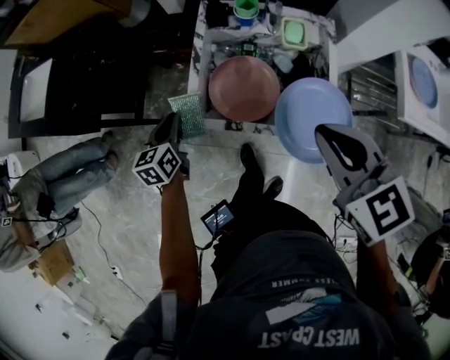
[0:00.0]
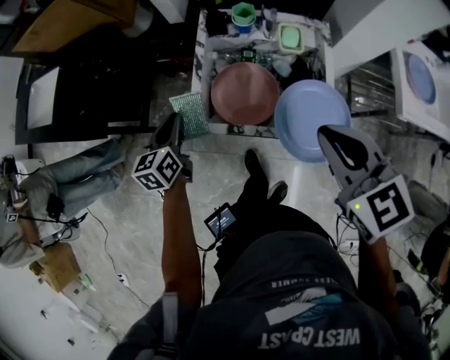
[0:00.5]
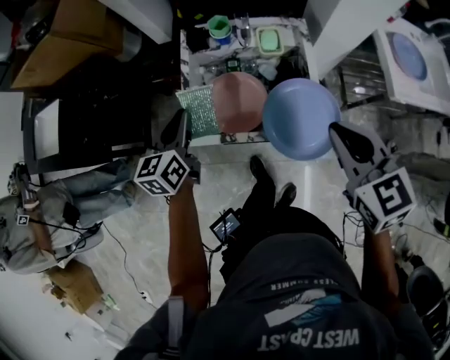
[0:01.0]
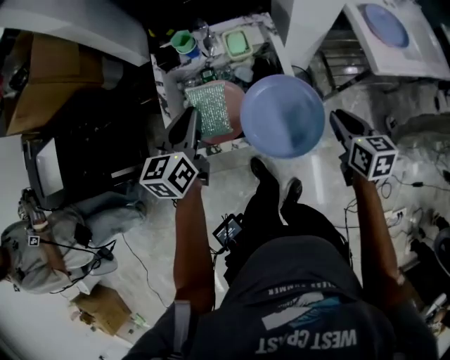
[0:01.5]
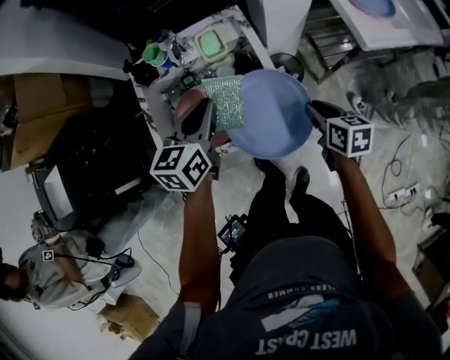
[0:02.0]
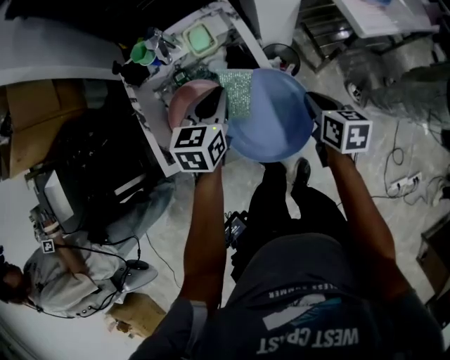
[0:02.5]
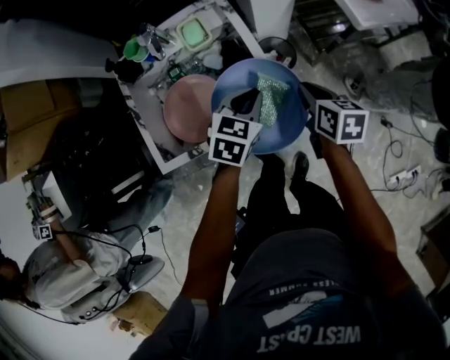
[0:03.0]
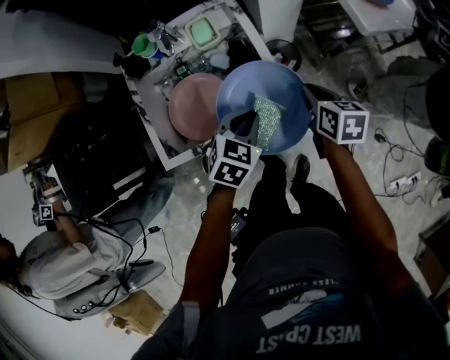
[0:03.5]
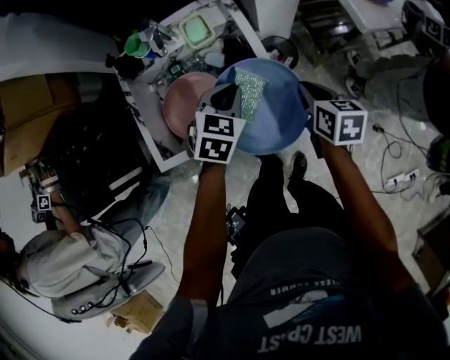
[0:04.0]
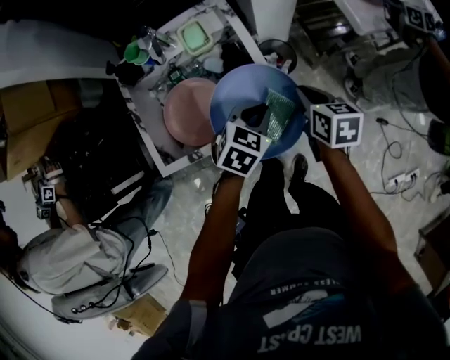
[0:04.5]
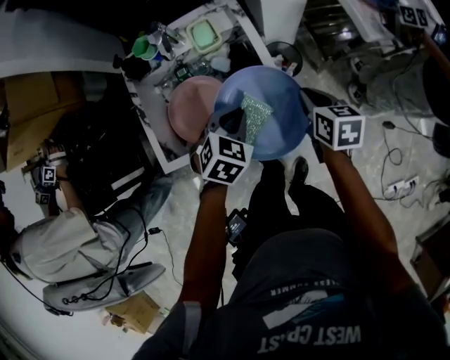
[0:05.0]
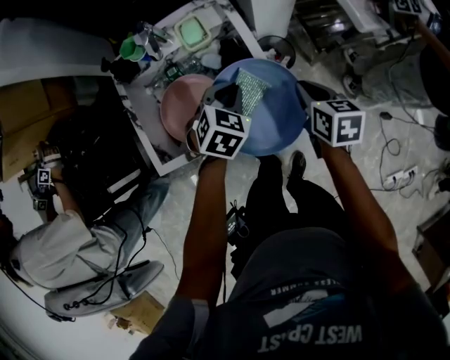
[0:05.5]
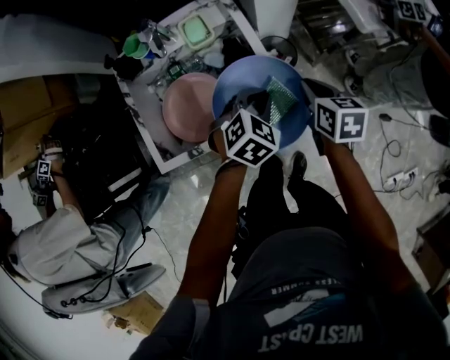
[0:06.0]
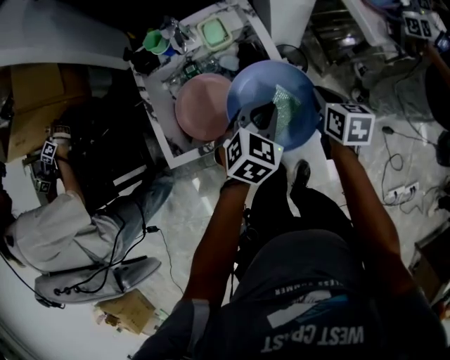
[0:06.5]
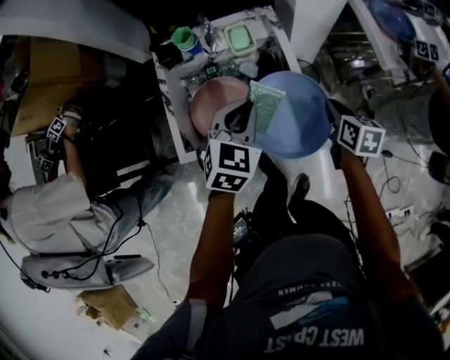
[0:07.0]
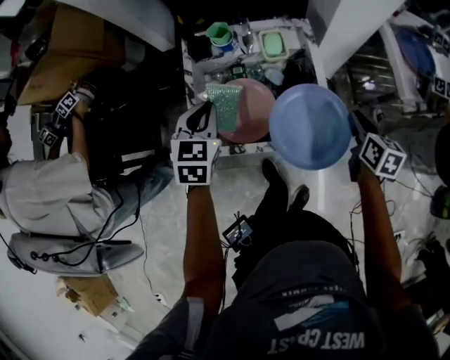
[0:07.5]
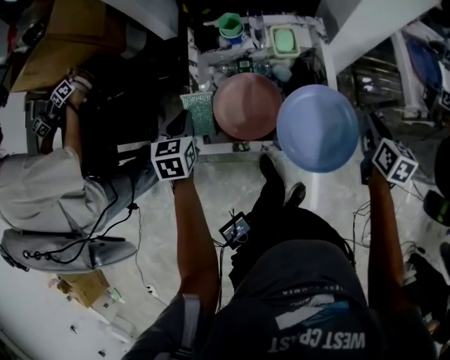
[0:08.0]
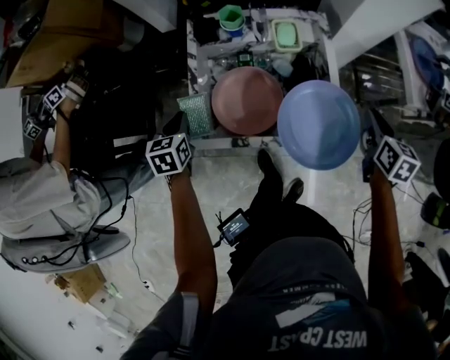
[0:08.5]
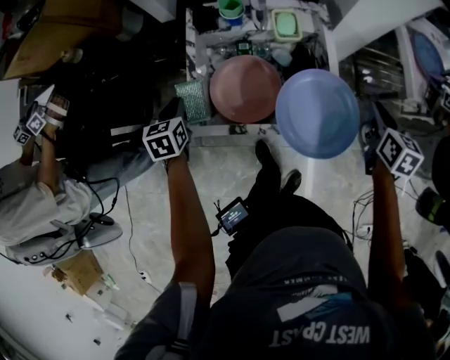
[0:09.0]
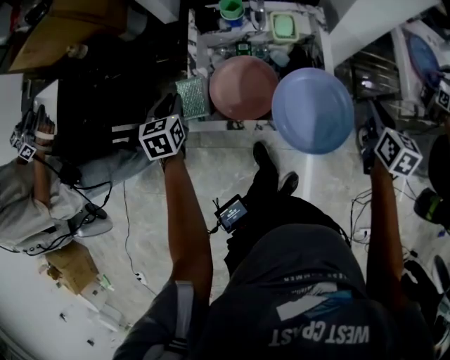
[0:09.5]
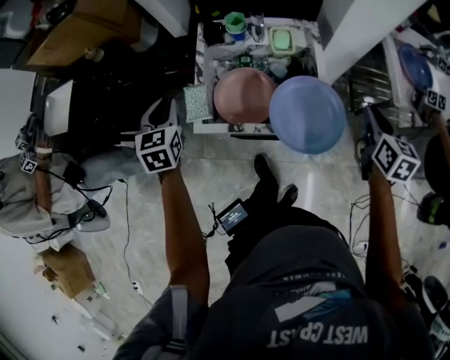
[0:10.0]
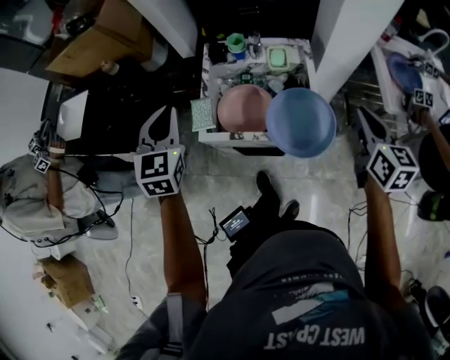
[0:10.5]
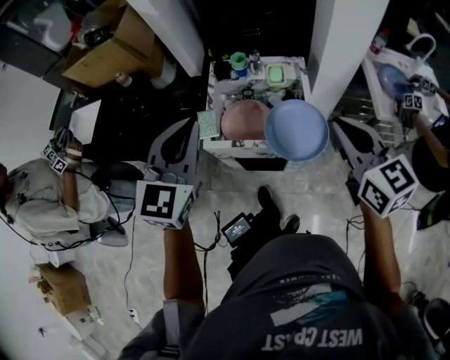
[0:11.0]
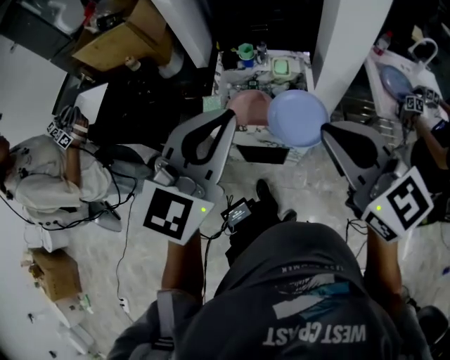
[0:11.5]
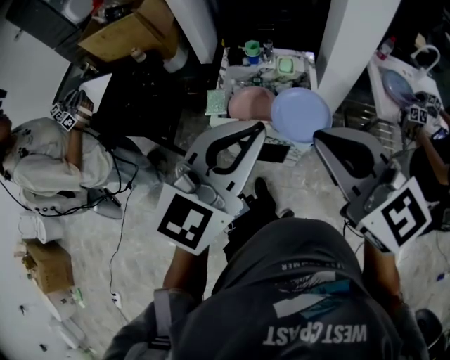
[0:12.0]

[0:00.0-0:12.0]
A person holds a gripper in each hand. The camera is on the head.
0.0 to 2.0 s: The right gripper moves downward, roughly 25 cm, and rolls clockwise, seen from behind, by approximately 50 degrees, while the left gripper changes place by about 30 cm, and swivels about 40 degrees.
2.0 to 4.0 s: The left gripper is displaced downward and to the right by approximately 10 cm, and rotates about 30 degrees.
4.0 to 6.0 s: The left gripper swings left and right, approximately 10 cm each way, with 2 reversals.
6.0 to 8.0 s: The right gripper changes place by some 5 cm. The left gripper goes about 40 cm to the left, and changes its angle by approximately 60 degrees.
8.0 to 10.0 s: Both grippers move upward, approximately 10 cm.
10.0 to 12.0 s: The right gripper goes roughly 40 cm upward, to the left and backward, and rotates about 60 degrees; the left gripper goes some 50 cm backward, upward and to the right, and turns by roughly 50 degrees.

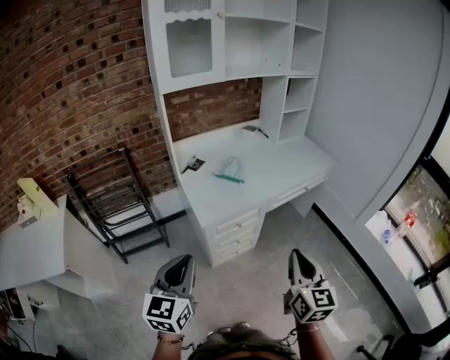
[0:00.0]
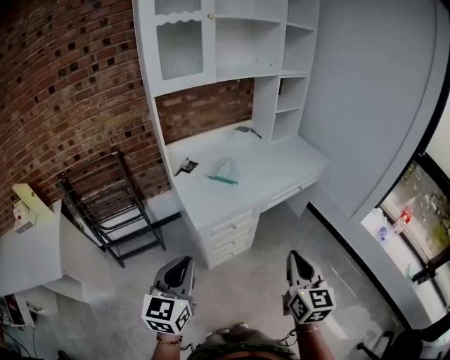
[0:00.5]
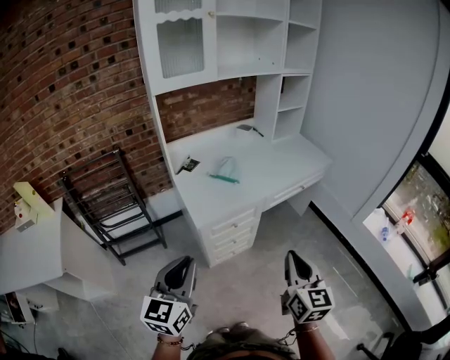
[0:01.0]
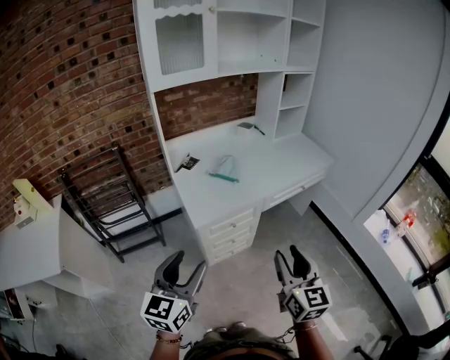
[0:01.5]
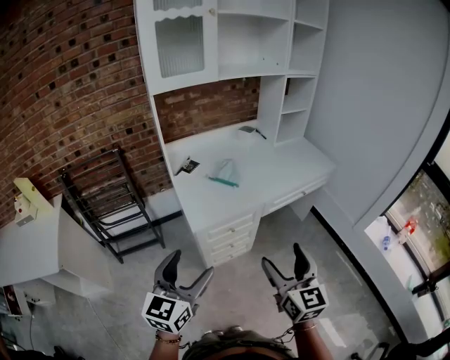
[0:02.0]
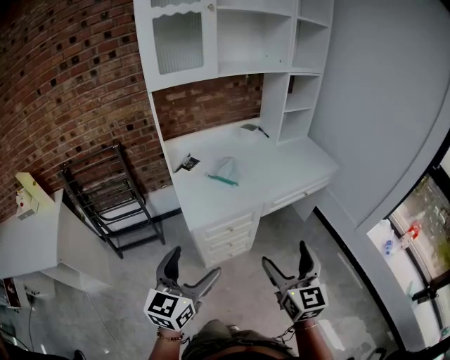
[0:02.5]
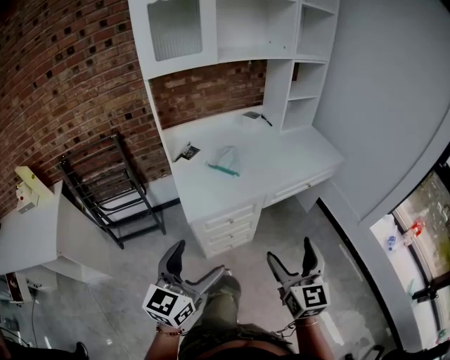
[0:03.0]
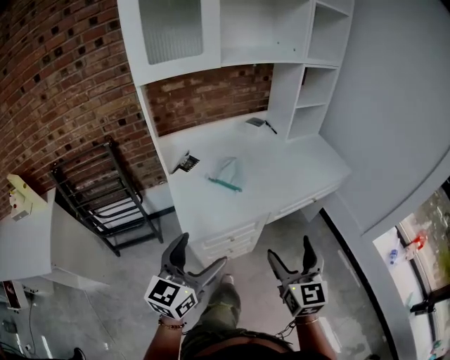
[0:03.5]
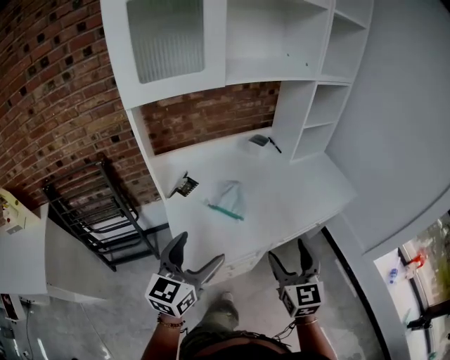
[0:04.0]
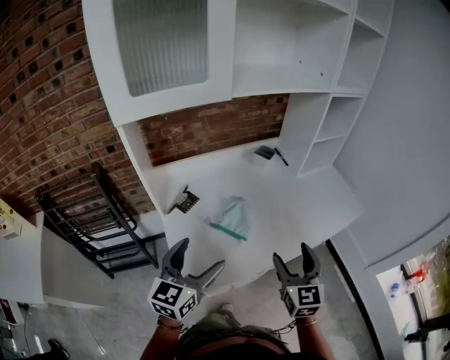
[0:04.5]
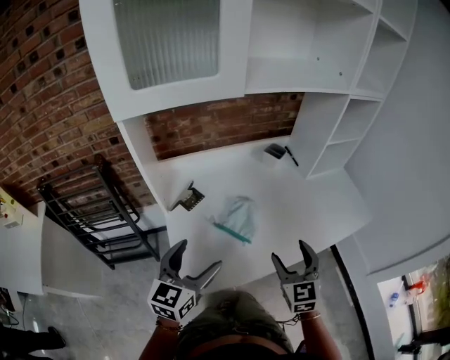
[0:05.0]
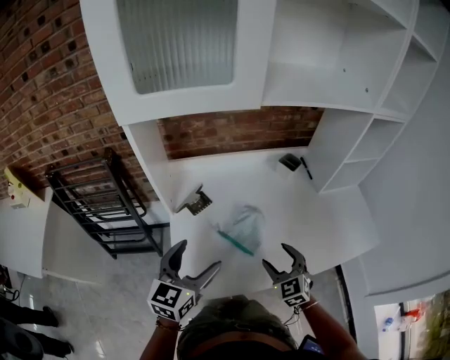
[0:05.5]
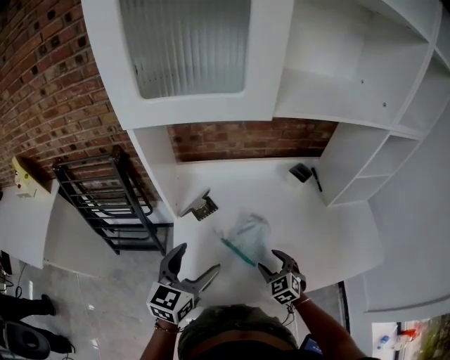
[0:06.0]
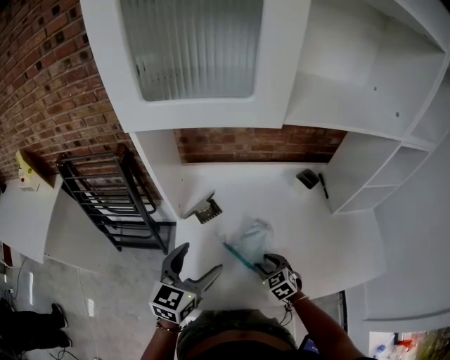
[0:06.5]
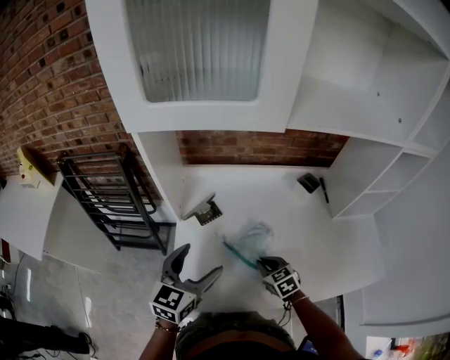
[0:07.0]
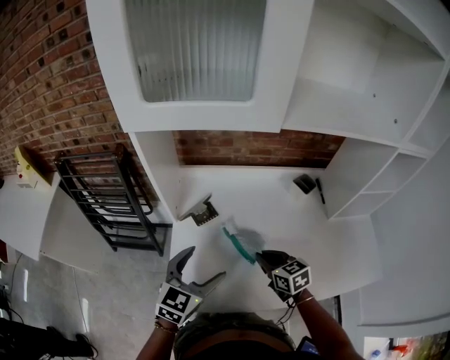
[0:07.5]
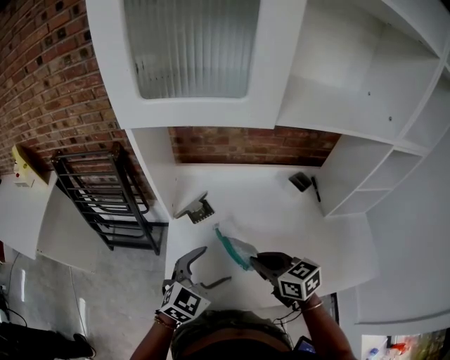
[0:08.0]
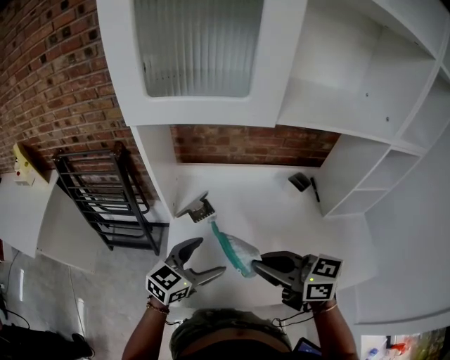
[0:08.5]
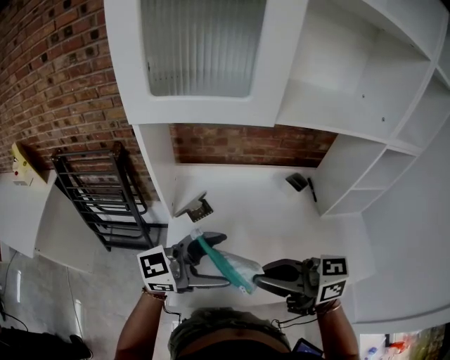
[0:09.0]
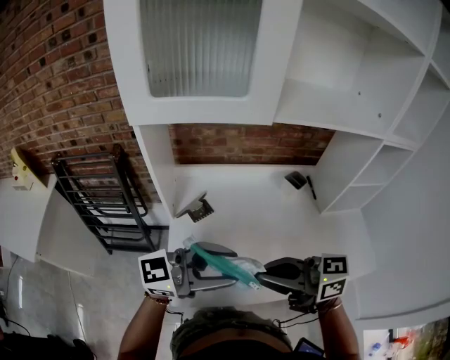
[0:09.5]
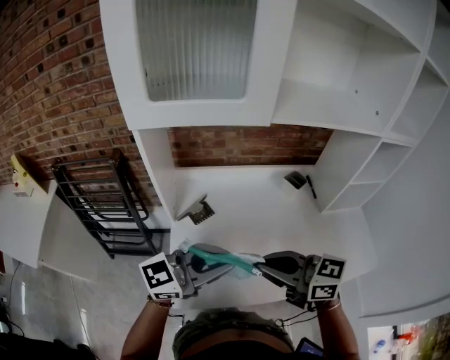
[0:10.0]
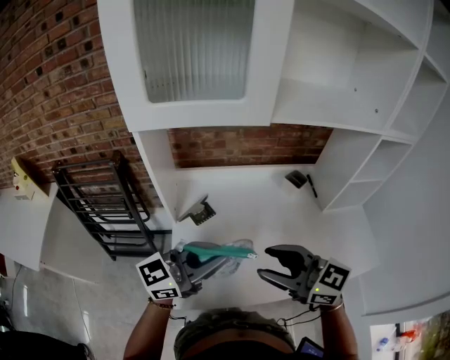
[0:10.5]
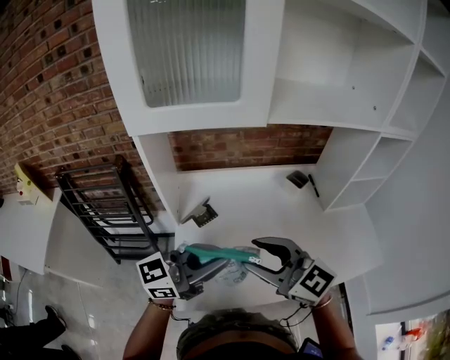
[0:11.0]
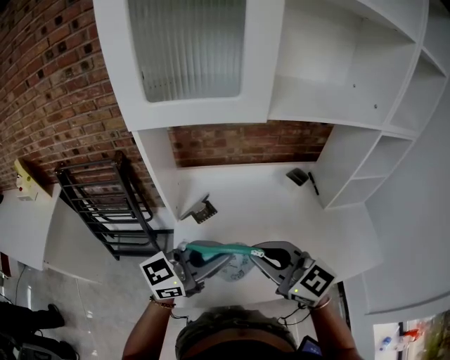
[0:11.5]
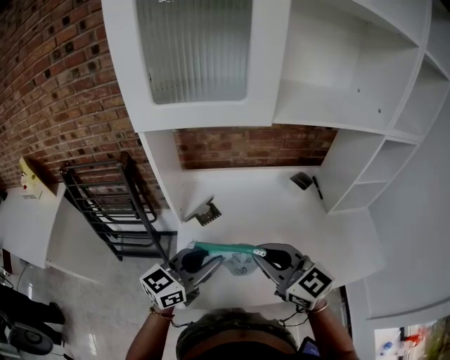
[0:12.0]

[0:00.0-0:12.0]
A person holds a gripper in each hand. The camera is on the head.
0.0 to 2.0 s: The right gripper opens up, while the left gripper heads to the right, covering some 5 cm, and opens its fingers.
2.0 to 4.0 s: The two grippers go some 30 cm forward.
4.0 to 6.0 s: The left gripper is displaced forward by some 15 cm. Meanwhile the right gripper travels forward and downward by roughly 35 cm, and changes its angle by roughly 50 degrees.
6.0 to 8.0 s: The left gripper travels to the right by about 5 cm, and rotates about 20 degrees, while the right gripper shifts about 15 cm upward, swivels approximately 40 degrees, and closes up.
8.0 to 10.0 s: Both grippers move upward, about 15 cm. The right gripper rotates some 20 degrees. Meanwhile the left gripper tips its fingers upward by about 30 degrees, and closes.
10.0 to 12.0 s: The left gripper moves downward, roughly 5 cm, and swivels about 30 degrees, while the right gripper swivels approximately 30 degrees, and opens, then closes again.

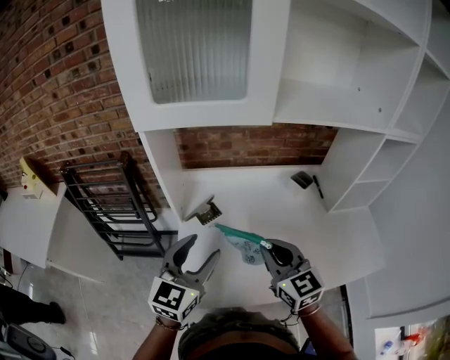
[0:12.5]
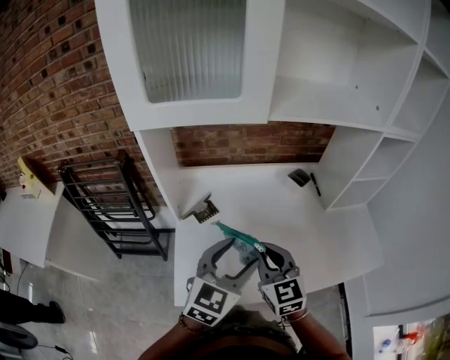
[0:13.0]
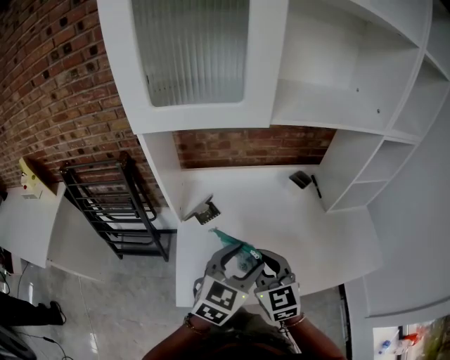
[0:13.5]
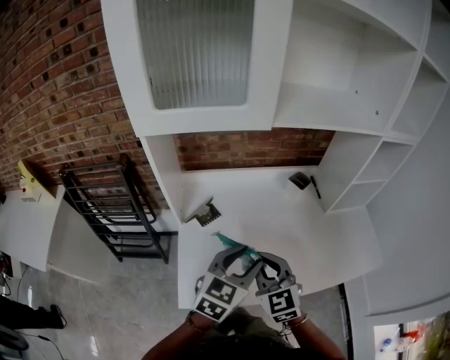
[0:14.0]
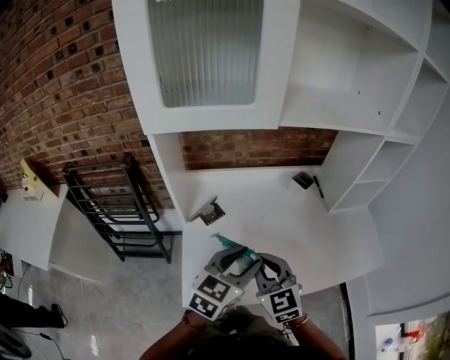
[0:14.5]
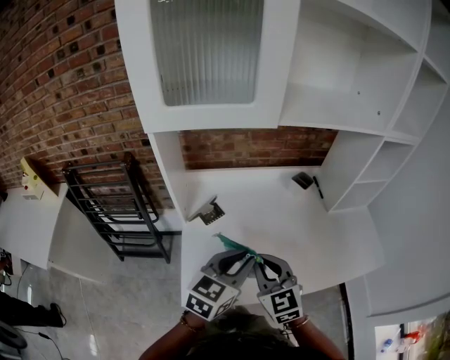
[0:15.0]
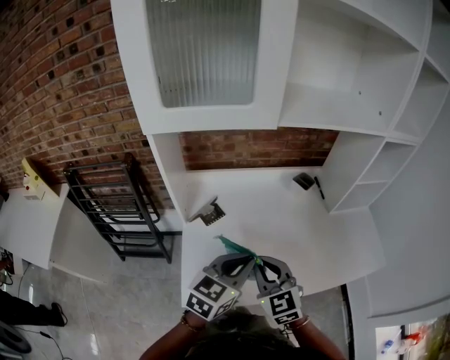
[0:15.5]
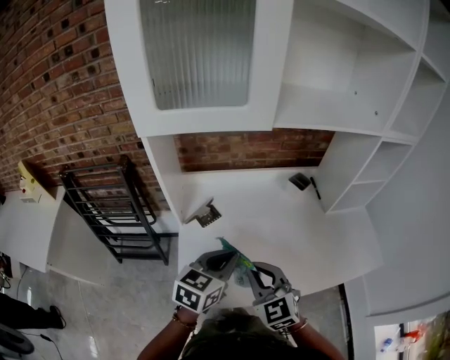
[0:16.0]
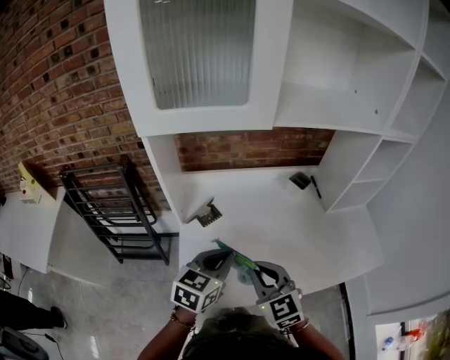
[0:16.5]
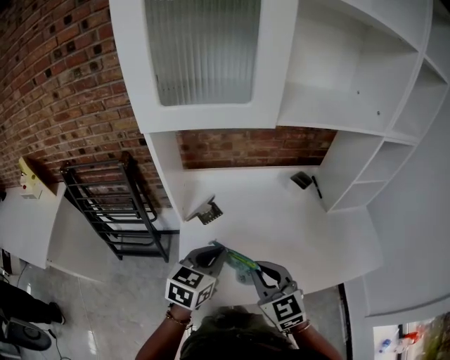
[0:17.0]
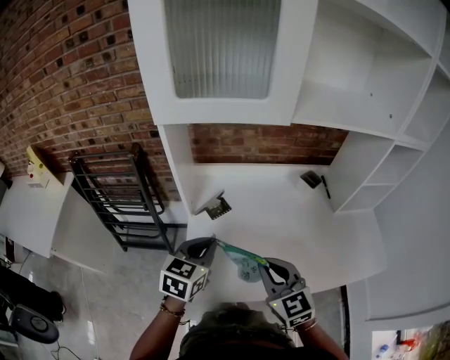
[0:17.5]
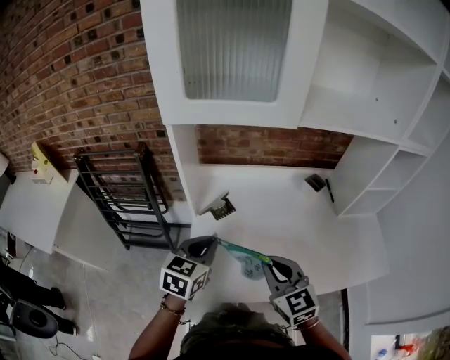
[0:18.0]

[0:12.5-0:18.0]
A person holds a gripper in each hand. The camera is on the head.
12.5 to 14.5 s: The left gripper travels to the right by approximately 10 cm, and swivels roughly 20 degrees, while the right gripper shifts by some 5 cm.
14.5 to 16.0 s: The left gripper closes.
16.0 to 18.0 s: The left gripper is displaced to the left by some 10 cm.
